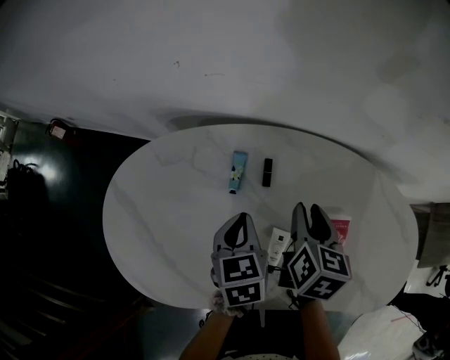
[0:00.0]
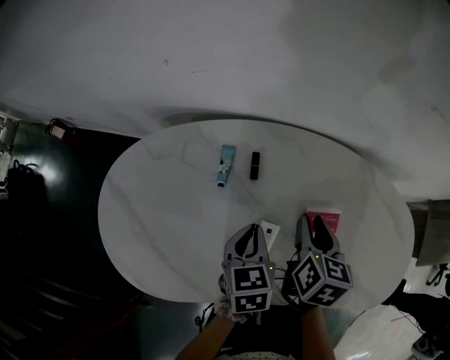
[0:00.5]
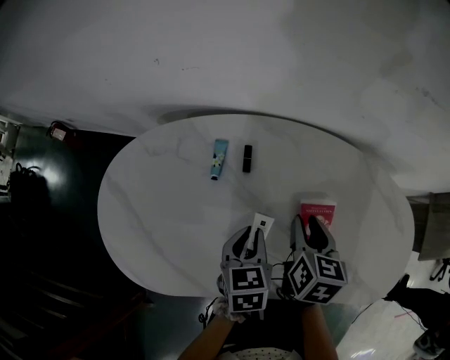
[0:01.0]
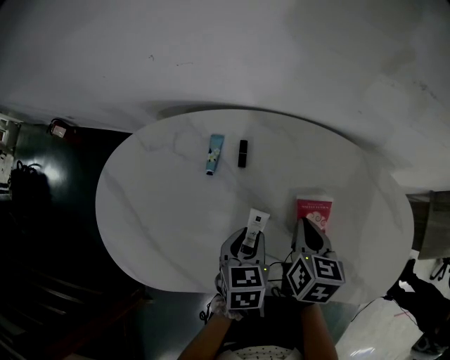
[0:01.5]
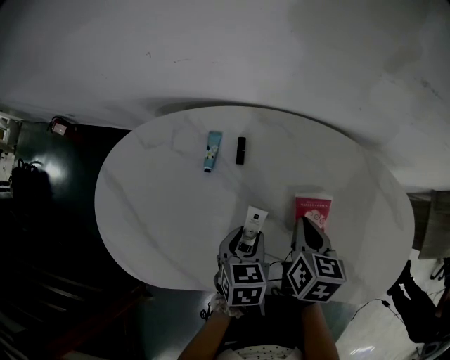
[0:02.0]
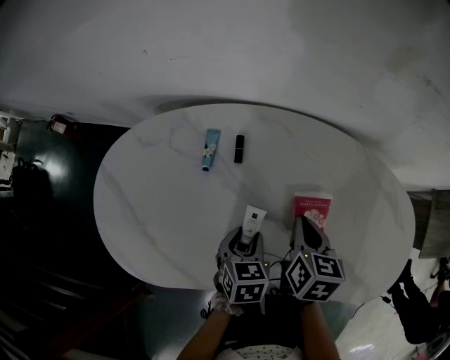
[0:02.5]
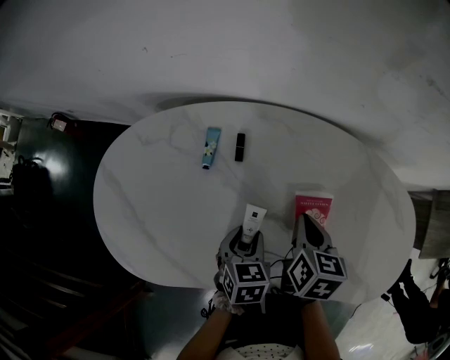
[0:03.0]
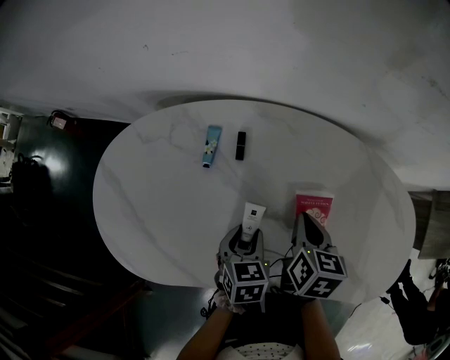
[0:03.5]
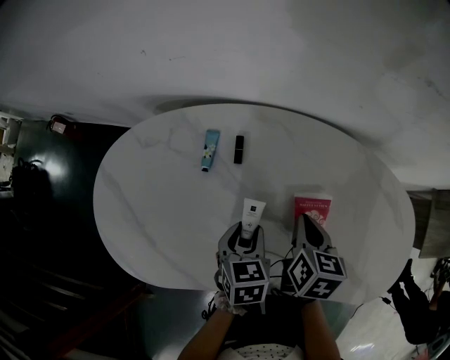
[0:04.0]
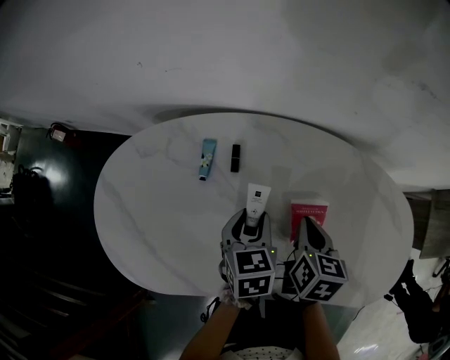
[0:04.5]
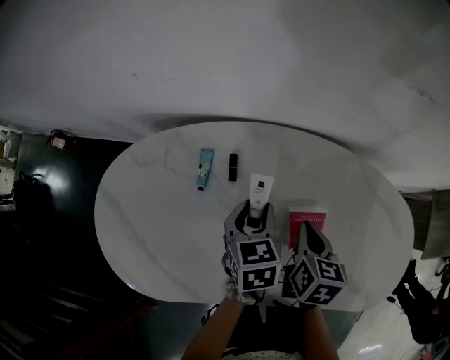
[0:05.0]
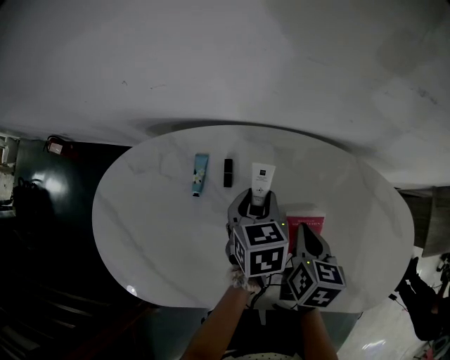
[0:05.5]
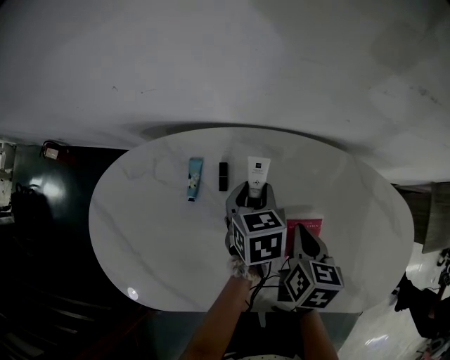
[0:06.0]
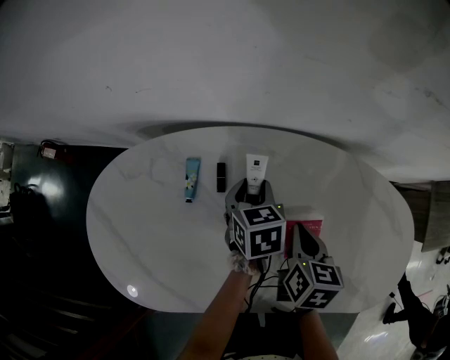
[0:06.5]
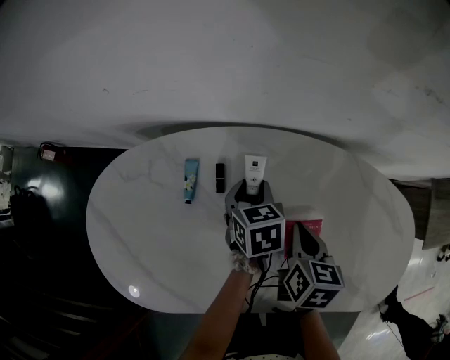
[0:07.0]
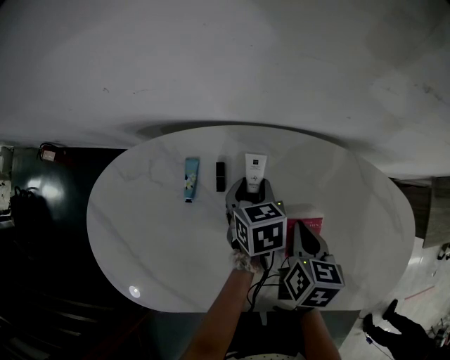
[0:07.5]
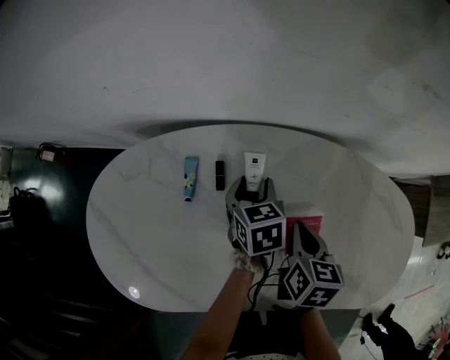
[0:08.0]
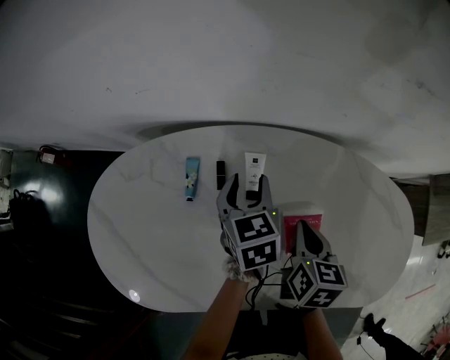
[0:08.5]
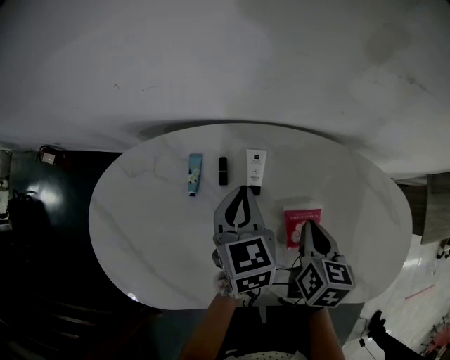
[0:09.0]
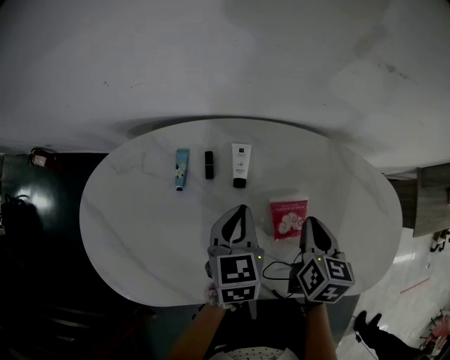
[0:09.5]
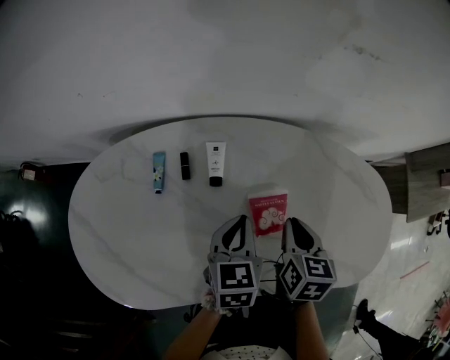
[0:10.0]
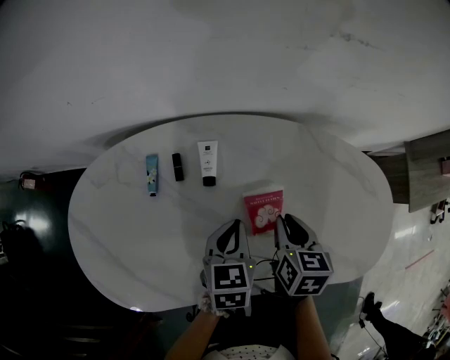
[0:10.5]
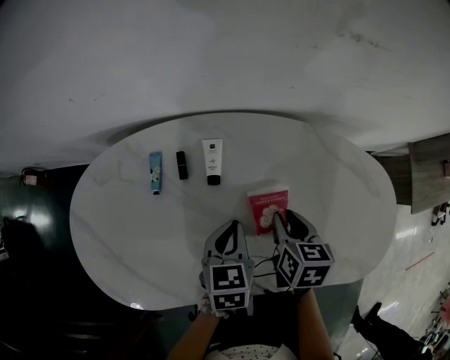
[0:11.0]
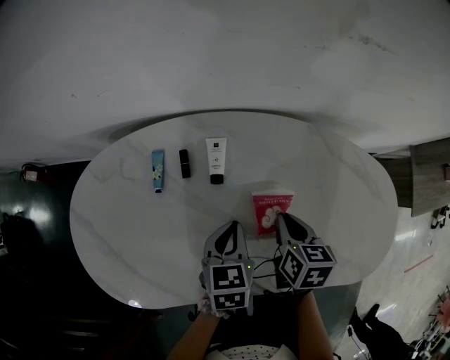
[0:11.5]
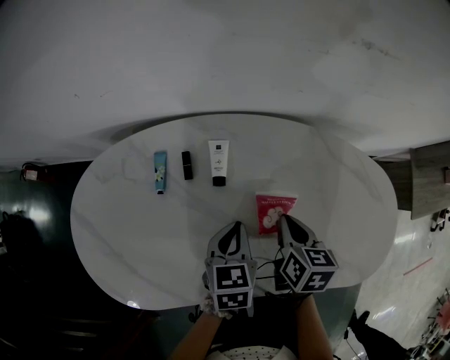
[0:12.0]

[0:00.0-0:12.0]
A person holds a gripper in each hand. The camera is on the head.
0:00.0 to 0:02.0: The right gripper is displaced backward and to the right by some 10 cm, and closes up, while the left gripper goes about 15 cm backward, to the right and downward, and opens its fingers.
0:02.0 to 0:04.0: The grippers stay close to where they were, moving slightly.
0:04.0 to 0:06.0: The left gripper moves forward, some 15 cm.
0:06.0 to 0:08.0: The grippers move only a little.
0:08.0 to 0:10.0: The left gripper moves backward, upward and to the right, approximately 15 cm, and closes up, while the right gripper goes some 10 cm to the right and backward.
0:10.0 to 0:12.0: The grippers make only small movements.

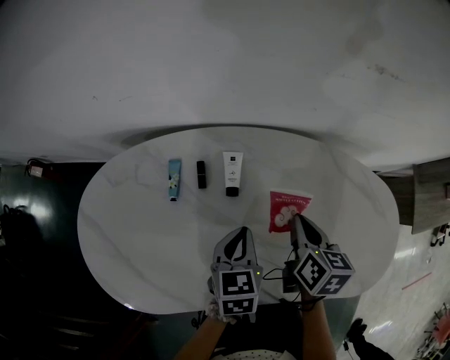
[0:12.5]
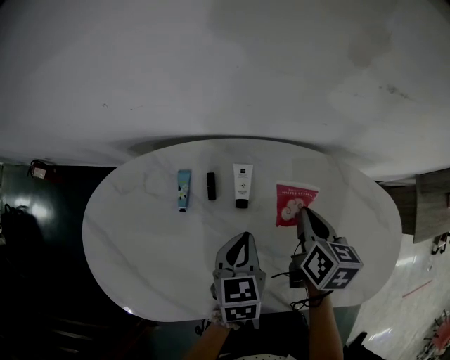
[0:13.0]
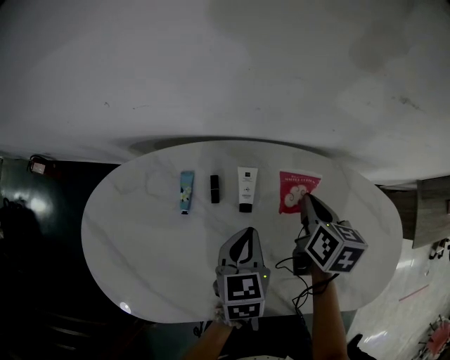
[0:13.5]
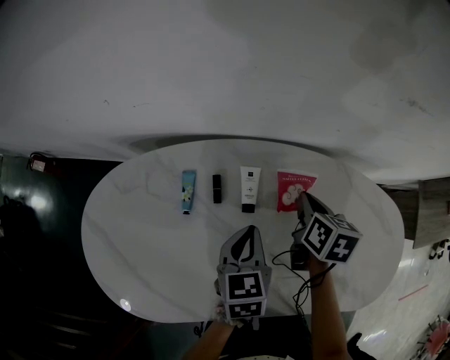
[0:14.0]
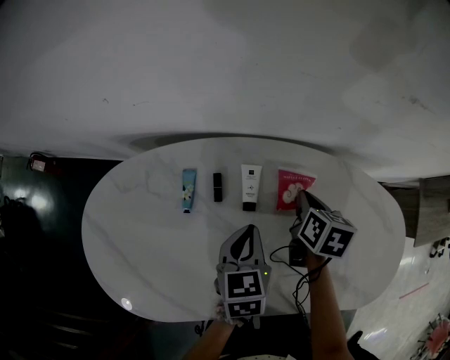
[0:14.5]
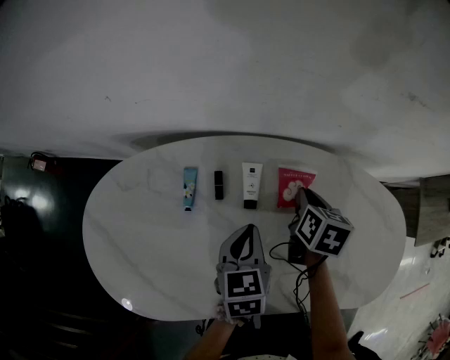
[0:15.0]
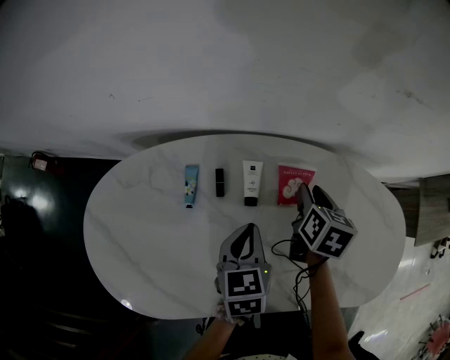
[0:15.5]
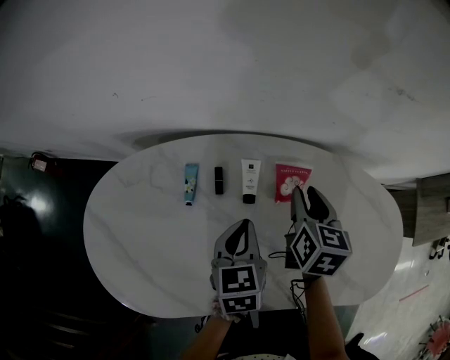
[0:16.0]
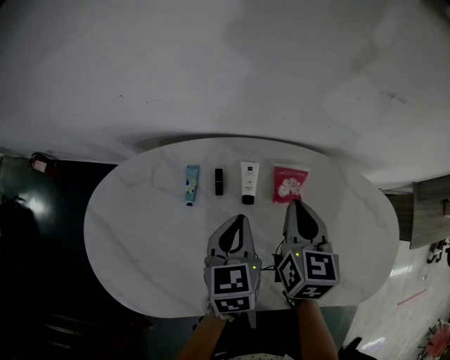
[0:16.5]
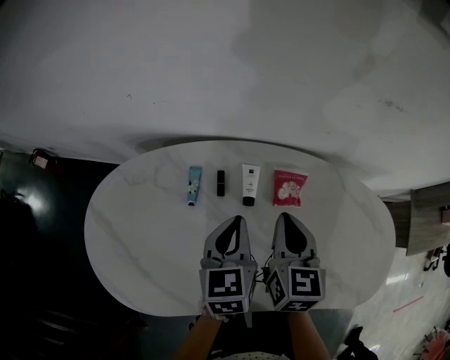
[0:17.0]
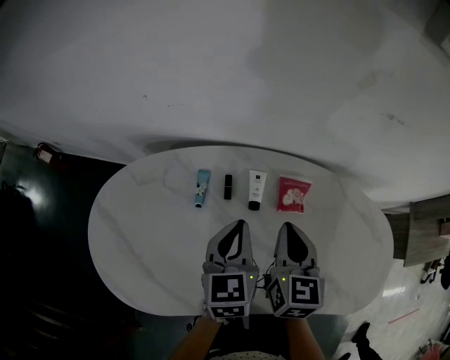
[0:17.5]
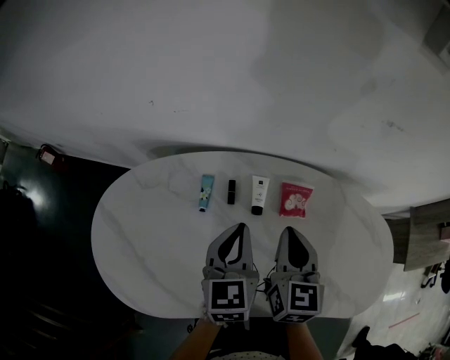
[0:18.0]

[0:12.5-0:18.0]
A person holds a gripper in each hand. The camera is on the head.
0:12.5 to 0:14.5: The left gripper moves some 5 cm; the right gripper heads forward, covering some 10 cm.
0:14.5 to 0:16.0: The right gripper goes roughly 5 cm upward, and opens up.
0:16.0 to 0:18.0: The left gripper shifts about 10 cm upward. Meanwhile the right gripper travels upward, backward and to the left by approximately 10 cm, and closes.

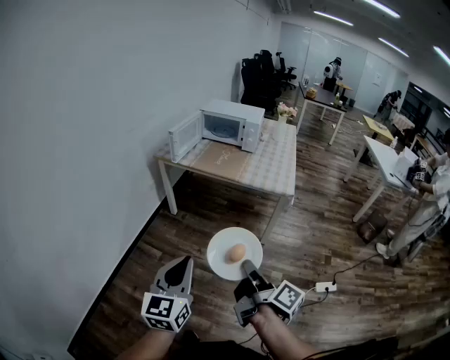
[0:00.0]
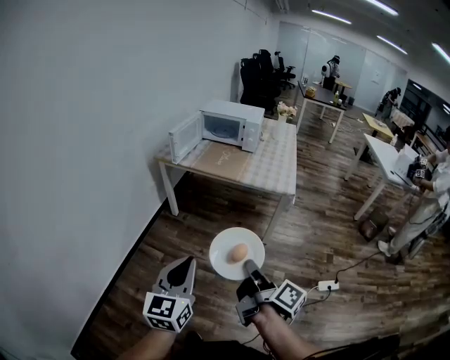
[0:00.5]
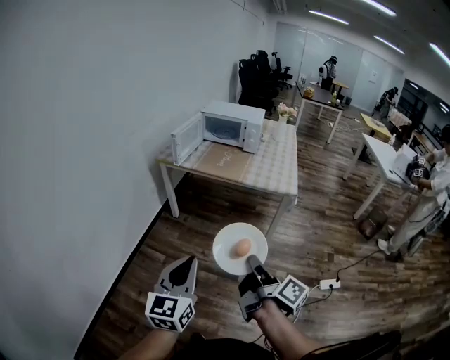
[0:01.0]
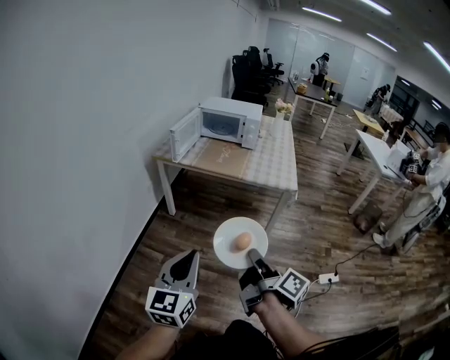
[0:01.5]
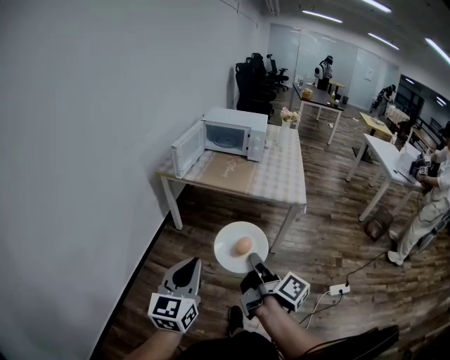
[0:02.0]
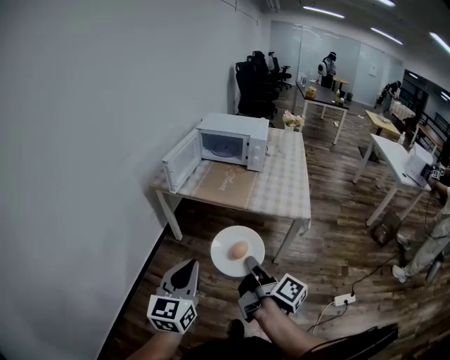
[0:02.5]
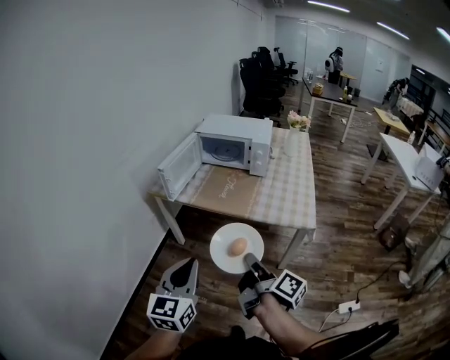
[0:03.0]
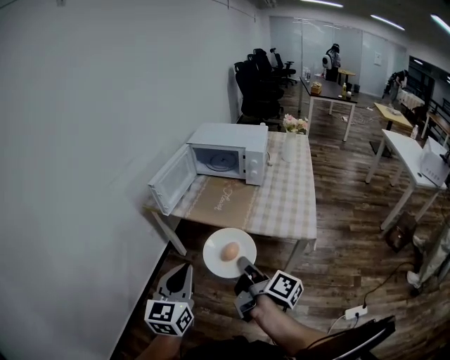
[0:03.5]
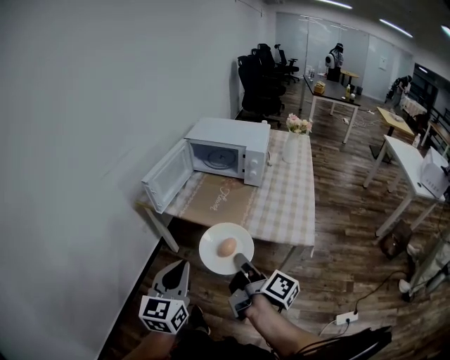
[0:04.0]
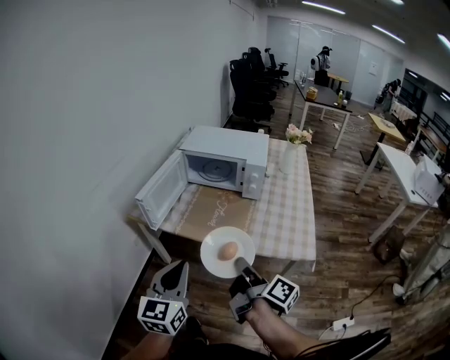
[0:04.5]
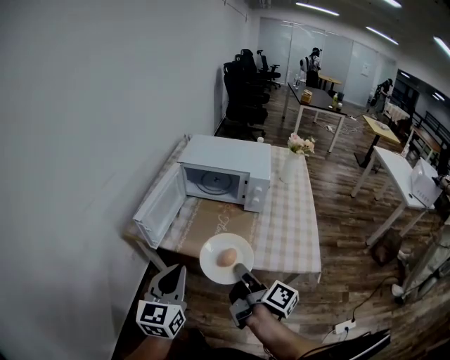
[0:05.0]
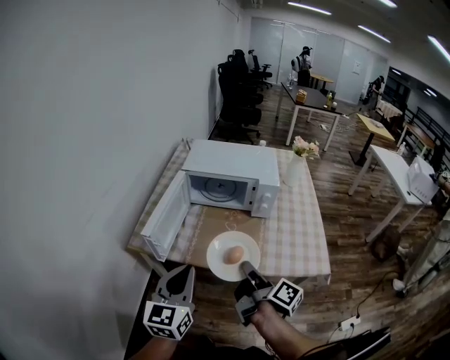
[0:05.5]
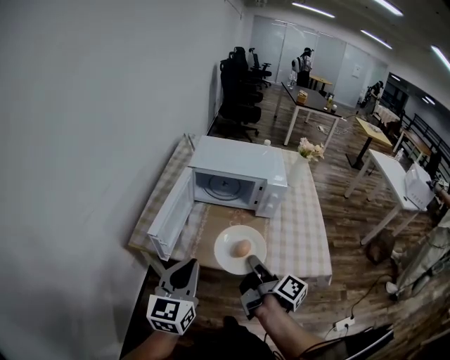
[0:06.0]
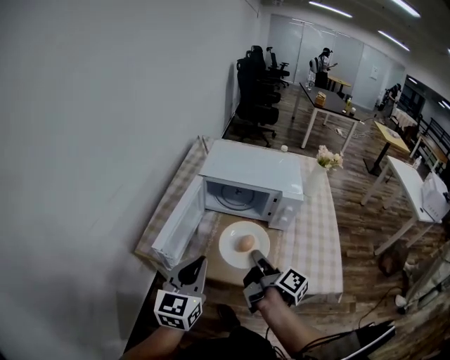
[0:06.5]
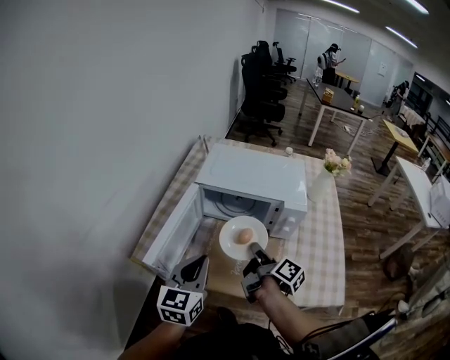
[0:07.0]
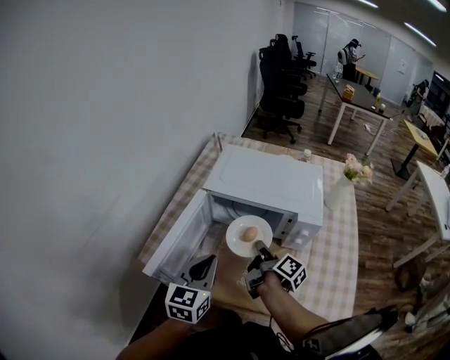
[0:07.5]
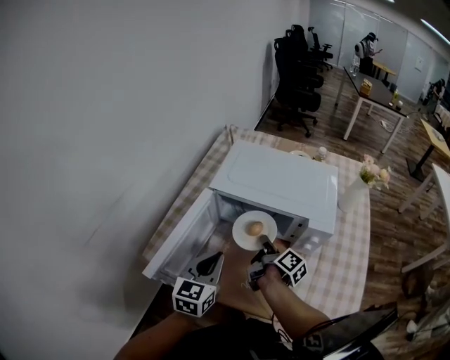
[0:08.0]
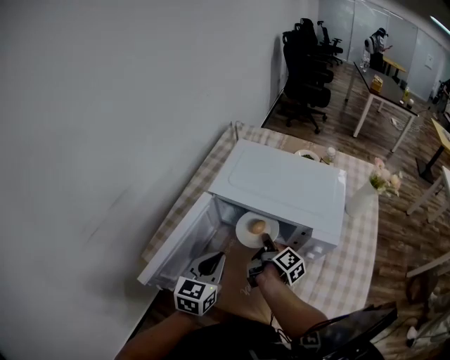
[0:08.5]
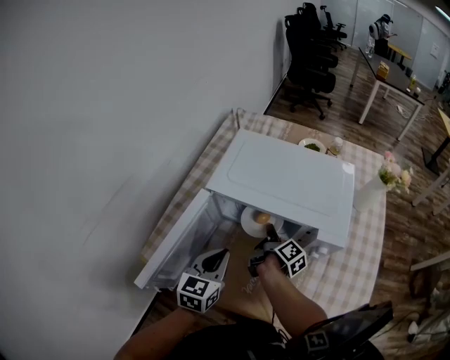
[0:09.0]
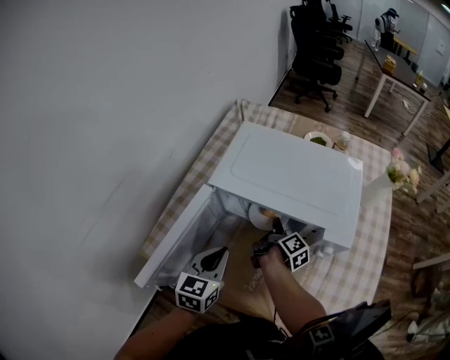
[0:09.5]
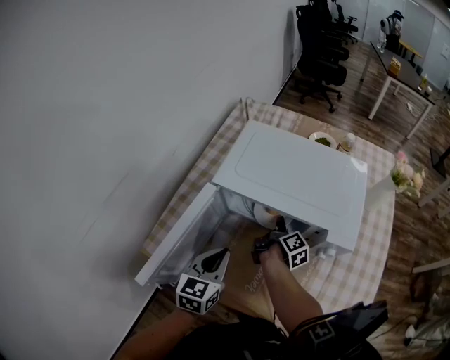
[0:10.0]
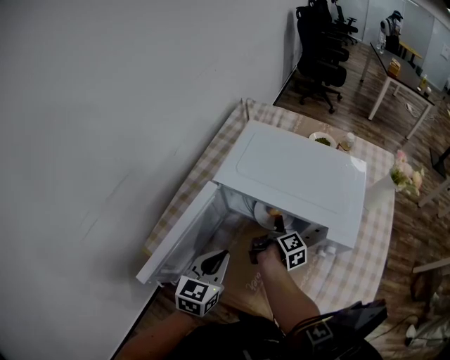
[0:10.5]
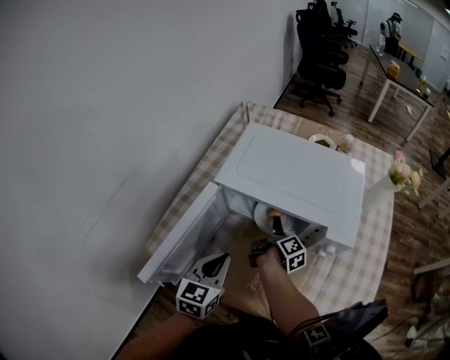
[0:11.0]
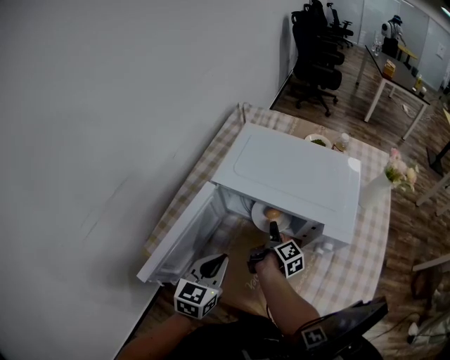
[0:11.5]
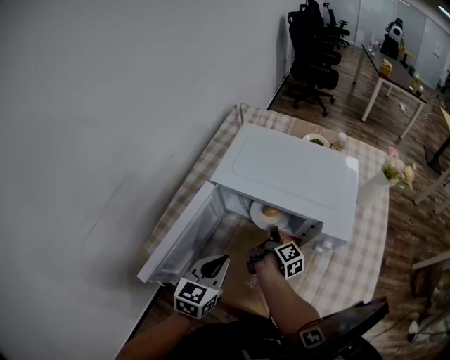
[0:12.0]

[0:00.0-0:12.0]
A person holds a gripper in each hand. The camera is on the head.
0:00.0 to 0:02.0: The two grippers go approximately 10 cm forward and to the left.
0:02.0 to 0:04.0: Both grippers travel together forward, roughly 30 cm.
0:04.0 to 0:06.0: Both grippers travel together forward and to the left, roughly 25 cm.
0:06.0 to 0:08.0: The right gripper shifts approximately 30 cm forward; the left gripper heads forward and downward, covering approximately 25 cm.
0:08.0 to 0:10.0: The left gripper shifts roughly 5 cm downward. The right gripper shifts some 15 cm forward and downward.
0:10.0 to 0:12.0: The right gripper opens and closes again.
